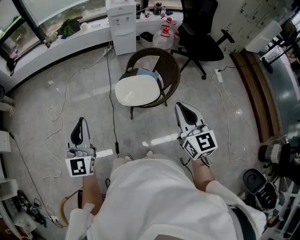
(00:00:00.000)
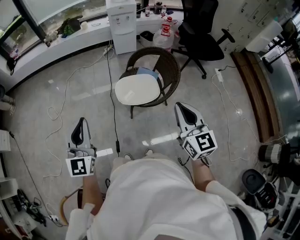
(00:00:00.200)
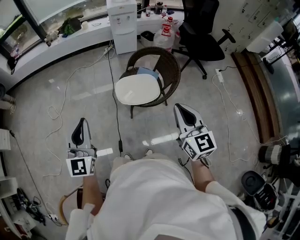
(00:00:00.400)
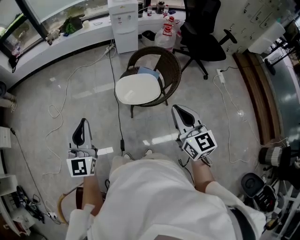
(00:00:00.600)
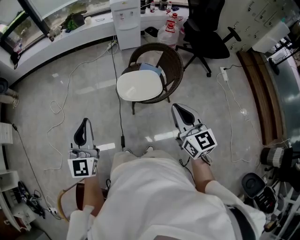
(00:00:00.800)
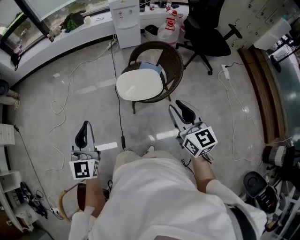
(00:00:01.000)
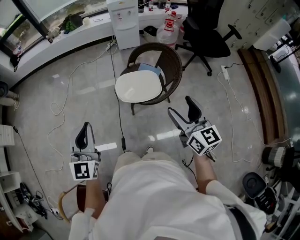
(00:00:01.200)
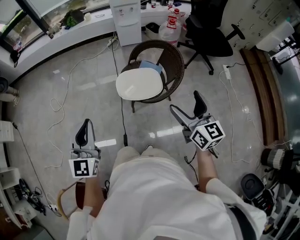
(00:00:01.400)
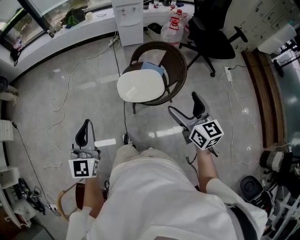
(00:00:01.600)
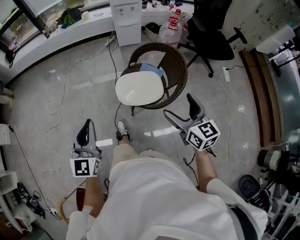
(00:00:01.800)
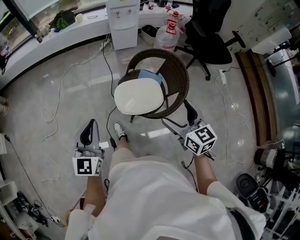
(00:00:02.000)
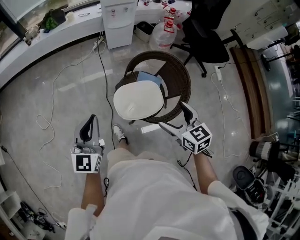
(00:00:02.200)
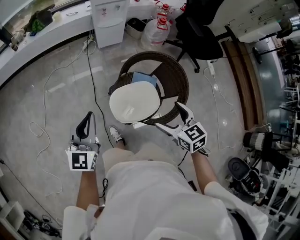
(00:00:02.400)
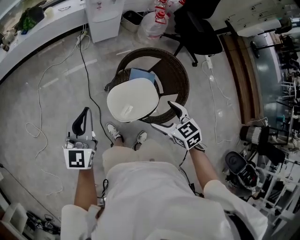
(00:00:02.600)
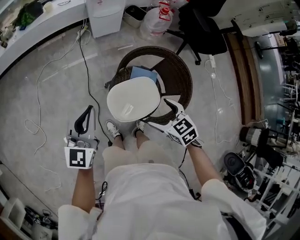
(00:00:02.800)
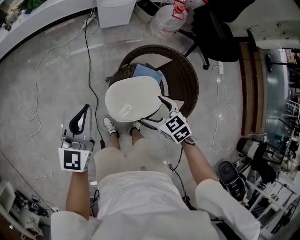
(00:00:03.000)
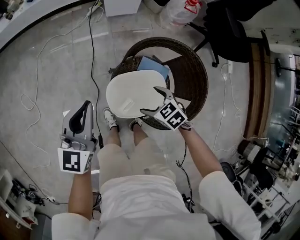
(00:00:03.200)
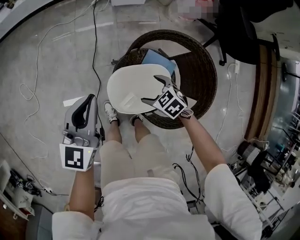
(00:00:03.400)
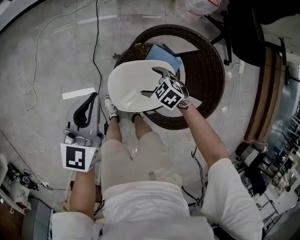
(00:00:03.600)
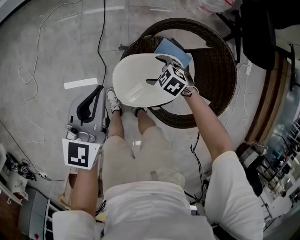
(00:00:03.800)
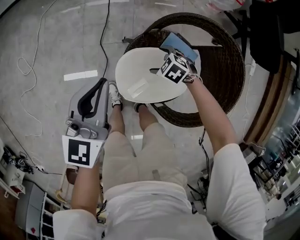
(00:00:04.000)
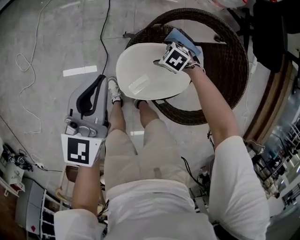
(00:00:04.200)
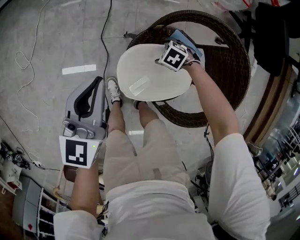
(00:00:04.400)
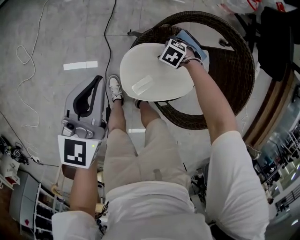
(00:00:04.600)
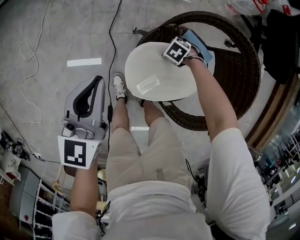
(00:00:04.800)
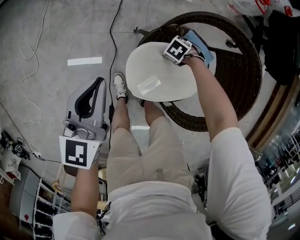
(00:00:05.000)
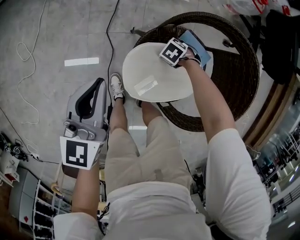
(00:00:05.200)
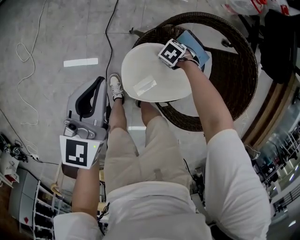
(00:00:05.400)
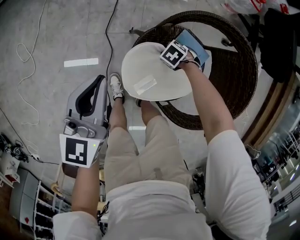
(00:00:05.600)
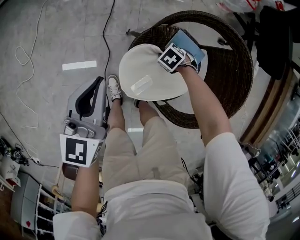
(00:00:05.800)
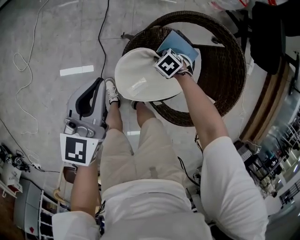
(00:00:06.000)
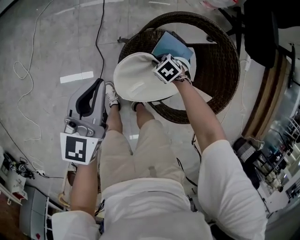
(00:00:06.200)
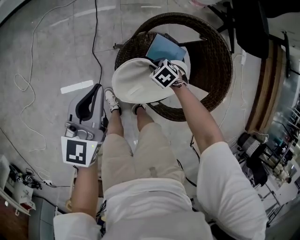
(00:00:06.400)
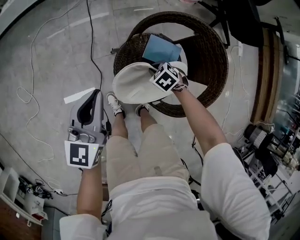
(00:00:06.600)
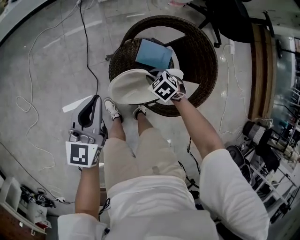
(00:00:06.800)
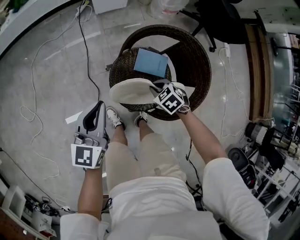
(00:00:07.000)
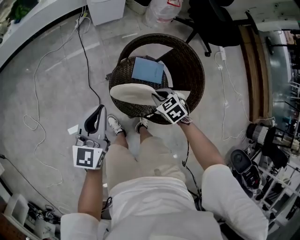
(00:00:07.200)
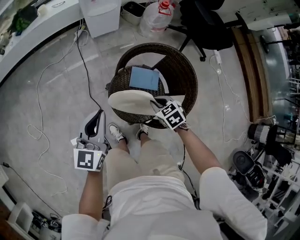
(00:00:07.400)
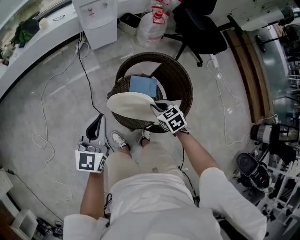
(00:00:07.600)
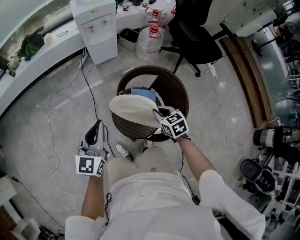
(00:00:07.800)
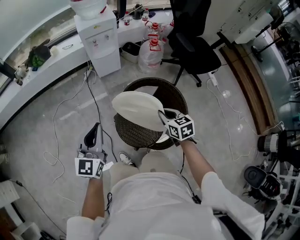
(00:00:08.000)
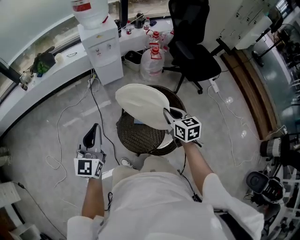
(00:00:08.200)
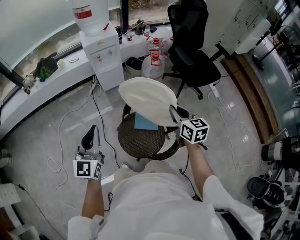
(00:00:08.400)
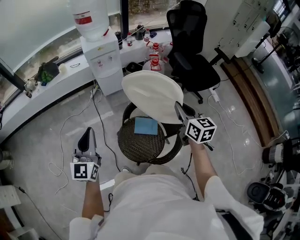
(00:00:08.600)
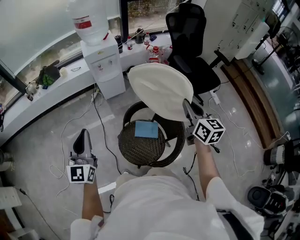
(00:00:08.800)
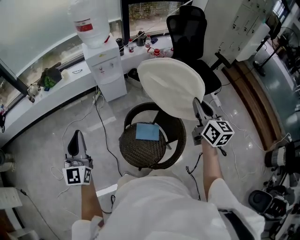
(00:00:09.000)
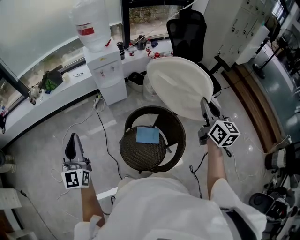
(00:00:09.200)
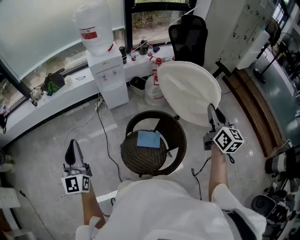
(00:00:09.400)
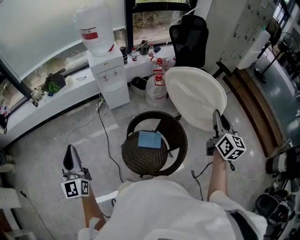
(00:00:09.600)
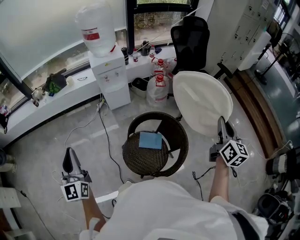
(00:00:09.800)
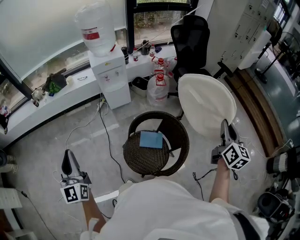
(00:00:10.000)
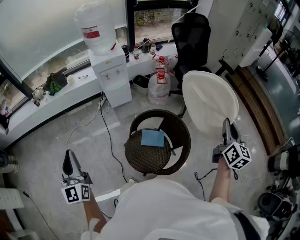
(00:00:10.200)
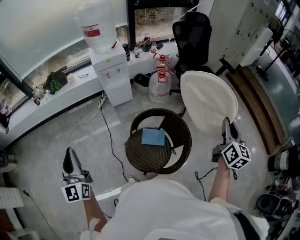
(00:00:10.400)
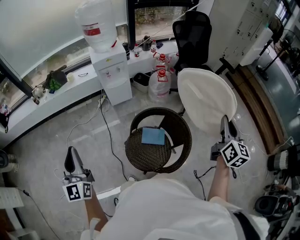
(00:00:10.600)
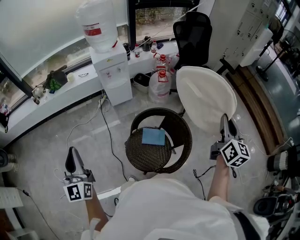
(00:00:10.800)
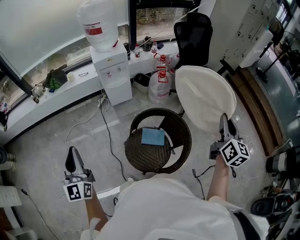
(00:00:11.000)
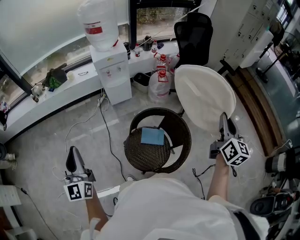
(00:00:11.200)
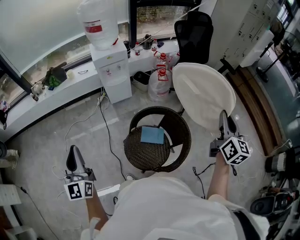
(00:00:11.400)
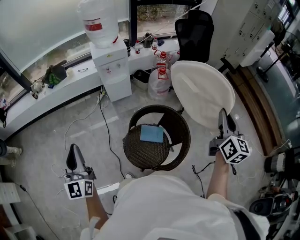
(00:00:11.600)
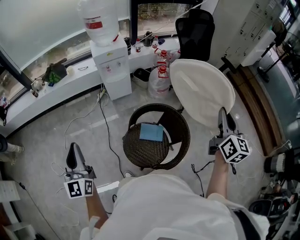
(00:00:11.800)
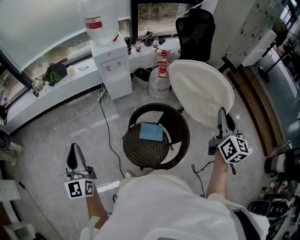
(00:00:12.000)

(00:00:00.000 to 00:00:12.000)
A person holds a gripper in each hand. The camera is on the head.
00:00:00.000 - 00:00:01.600: The left gripper goes some 5 cm to the right. Meanwhile the right gripper travels forward, downward and to the right by some 10 cm, and opens up.
00:00:01.600 - 00:00:03.000: The left gripper shifts roughly 40 cm forward, and changes its angle by roughly 20 degrees. The right gripper heads forward, downward and to the left, covering about 40 cm, and points its fingers about 40 degrees further downward.
00:00:03.000 - 00:00:04.400: The left gripper is displaced downward by approximately 15 cm. Meanwhile the right gripper heads downward, covering approximately 35 cm, and turns by roughly 50 degrees.
00:00:04.400 - 00:00:06.000: The right gripper closes.
00:00:06.000 - 00:00:07.600: The right gripper shifts roughly 30 cm upward, and changes its angle by some 50 degrees, while the left gripper heads upward, covering approximately 15 cm, and changes its angle by some 20 degrees.
00:00:07.600 - 00:00:09.000: The left gripper travels upward by some 20 cm, and rotates roughly 30 degrees, while the right gripper is displaced upward and to the right by approximately 40 cm, and tips its fingers upward by some 50 degrees.
00:00:09.000 - 00:00:10.400: The left gripper goes approximately 5 cm to the left. The right gripper shifts some 10 cm to the right and backward, and swivels some 20 degrees.
00:00:10.400 - 00:00:12.000: The right gripper shifts by about 5 cm.

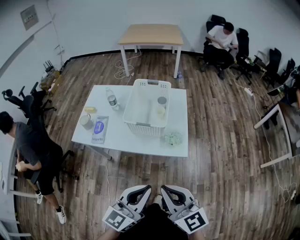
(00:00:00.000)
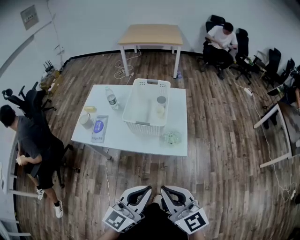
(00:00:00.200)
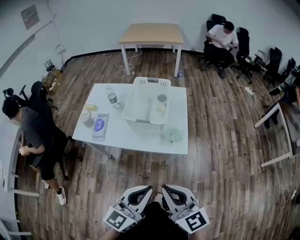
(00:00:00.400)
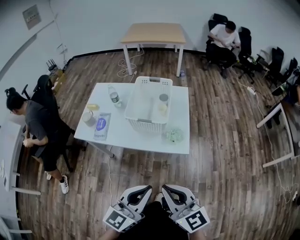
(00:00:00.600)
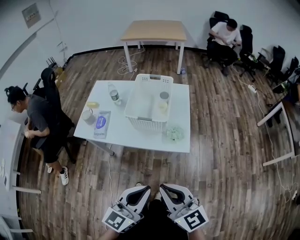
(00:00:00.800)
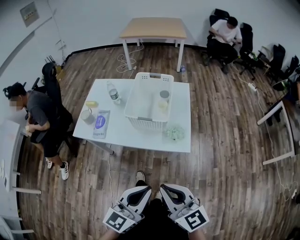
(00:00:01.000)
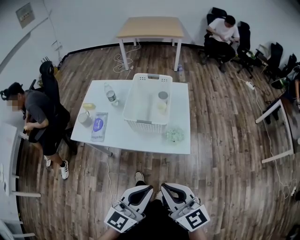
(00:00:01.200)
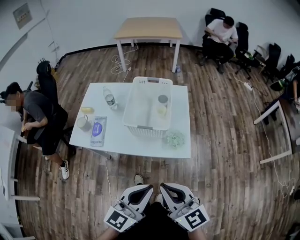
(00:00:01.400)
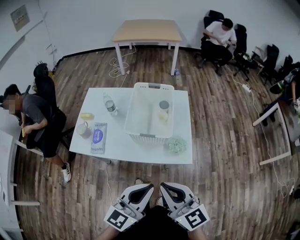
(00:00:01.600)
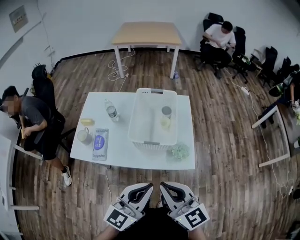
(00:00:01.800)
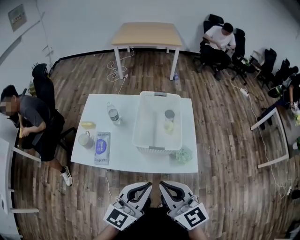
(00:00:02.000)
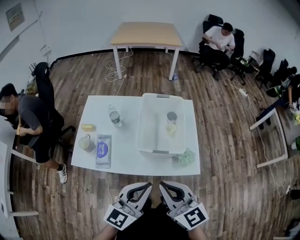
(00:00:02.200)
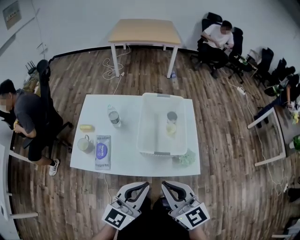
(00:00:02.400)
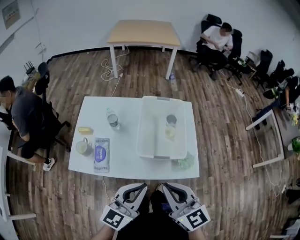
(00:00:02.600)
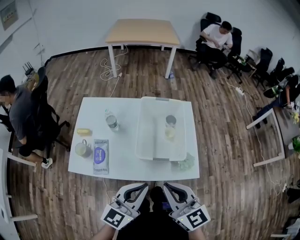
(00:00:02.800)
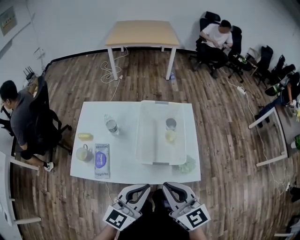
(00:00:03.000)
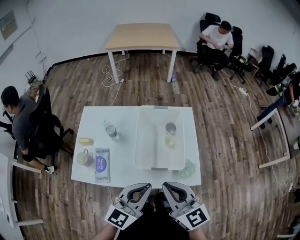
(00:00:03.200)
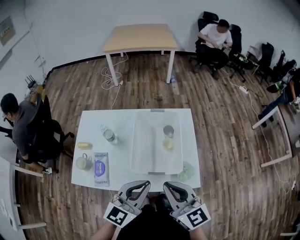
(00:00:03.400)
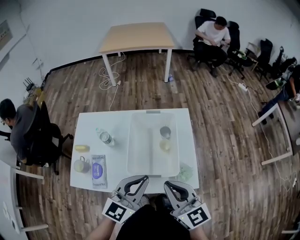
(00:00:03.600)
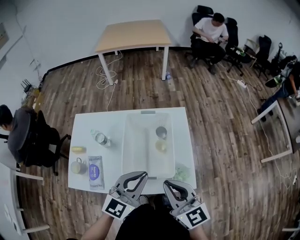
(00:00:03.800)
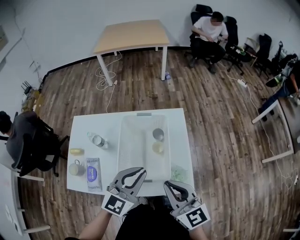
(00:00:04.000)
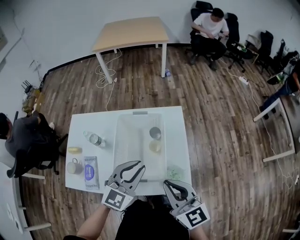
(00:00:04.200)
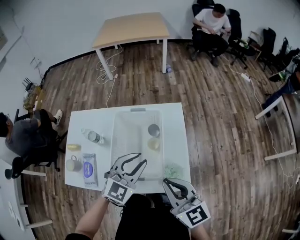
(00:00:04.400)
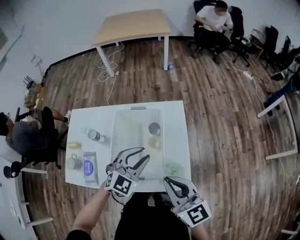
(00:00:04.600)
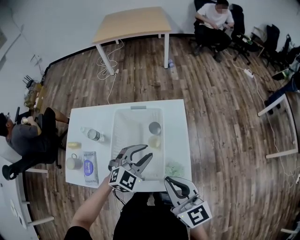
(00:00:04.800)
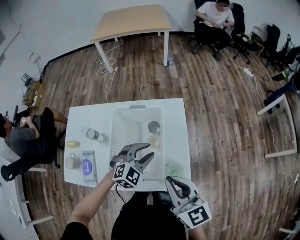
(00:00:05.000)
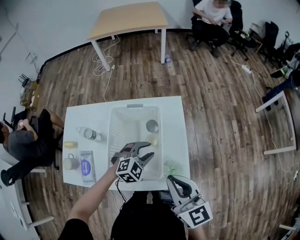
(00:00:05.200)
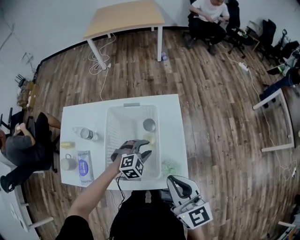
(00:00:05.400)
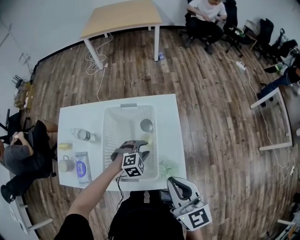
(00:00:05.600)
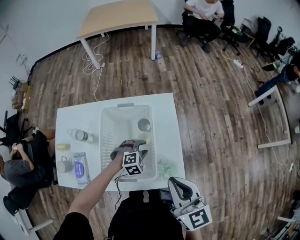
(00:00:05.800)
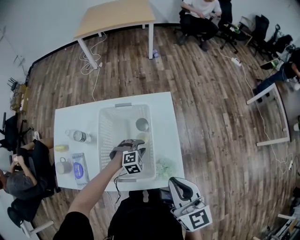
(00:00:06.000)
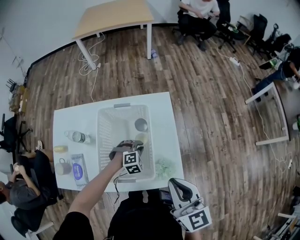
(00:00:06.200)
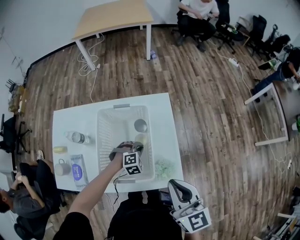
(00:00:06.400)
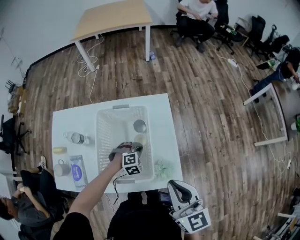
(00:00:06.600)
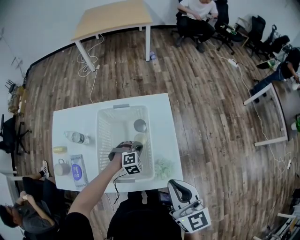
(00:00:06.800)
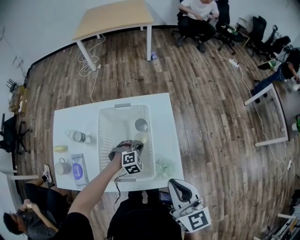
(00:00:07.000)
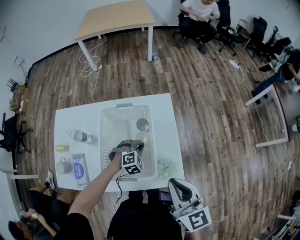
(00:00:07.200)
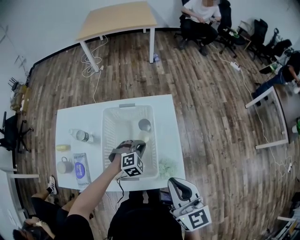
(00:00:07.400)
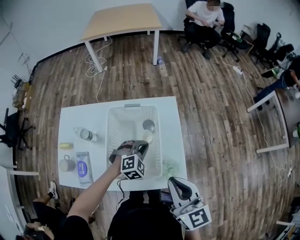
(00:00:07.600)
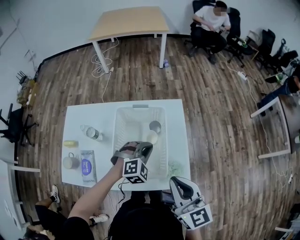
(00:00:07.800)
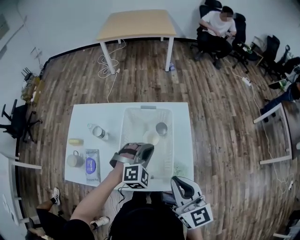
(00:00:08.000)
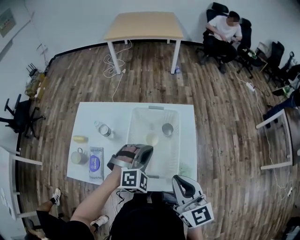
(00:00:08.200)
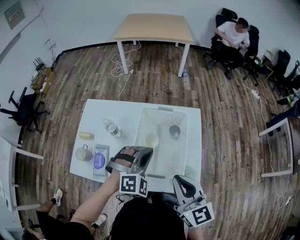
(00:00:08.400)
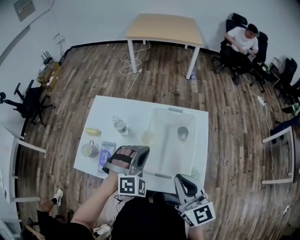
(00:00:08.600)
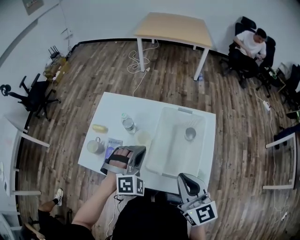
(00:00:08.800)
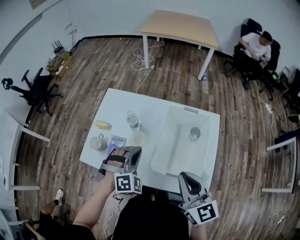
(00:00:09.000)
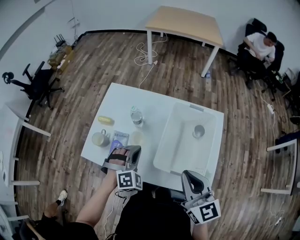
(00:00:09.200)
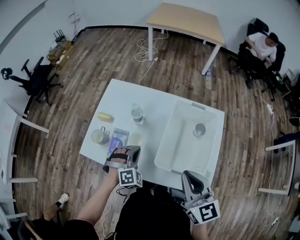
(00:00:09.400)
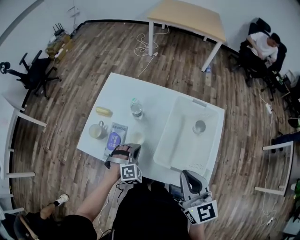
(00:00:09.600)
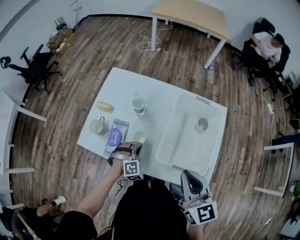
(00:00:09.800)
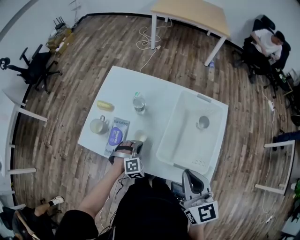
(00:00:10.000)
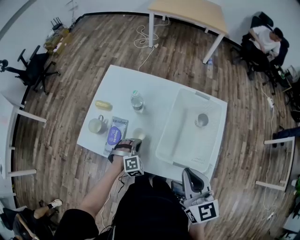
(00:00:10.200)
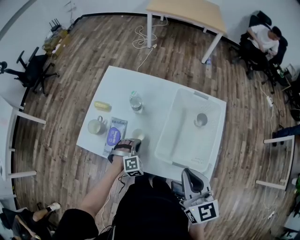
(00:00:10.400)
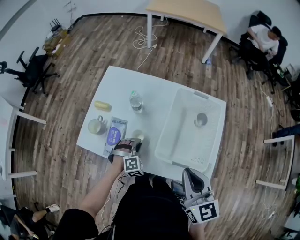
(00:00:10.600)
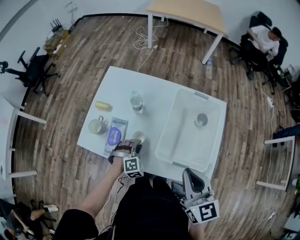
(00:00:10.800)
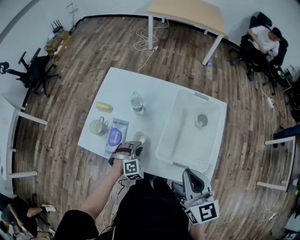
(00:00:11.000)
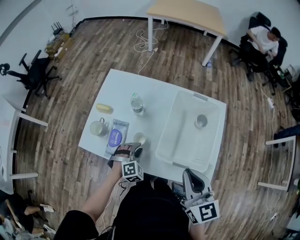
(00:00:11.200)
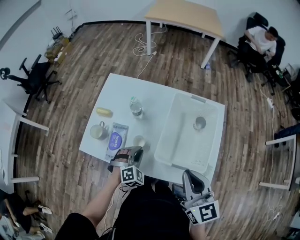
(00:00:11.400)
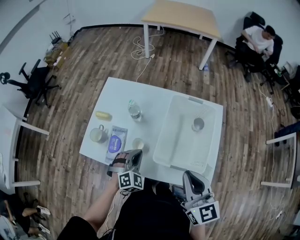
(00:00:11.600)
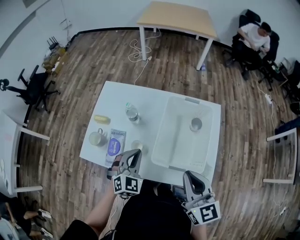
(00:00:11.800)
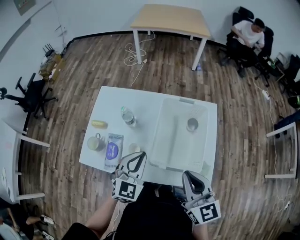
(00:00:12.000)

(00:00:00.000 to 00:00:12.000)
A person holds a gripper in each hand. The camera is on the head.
00:00:00.000 - 00:00:01.600: The two grippers go about 10 cm forward.
00:00:01.600 - 00:00:03.000: The two grippers go some 15 cm forward and to the left.
00:00:03.000 - 00:00:04.400: The left gripper is displaced forward and to the right by about 20 cm, turns by roughly 30 degrees, and opens its fingers, while the right gripper moves to the right and forward, about 15 cm.
00:00:04.400 - 00:00:06.000: The left gripper travels downward by approximately 25 cm, and tilts its fingers some 40 degrees downward.
00:00:06.000 - 00:00:07.600: The left gripper is displaced upward by some 10 cm, and closes its fingers.
00:00:07.600 - 00:00:09.000: The left gripper moves roughly 30 cm, and changes its angle by some 30 degrees. Meanwhile the right gripper moves some 15 cm.
00:00:09.000 - 00:00:10.400: The left gripper shifts some 20 cm downward.
00:00:10.400 - 00:00:12.000: The left gripper goes about 25 cm upward, tips its fingers upward by some 30 degrees, and opens, then closes once more.
